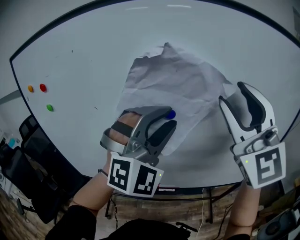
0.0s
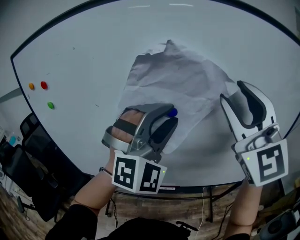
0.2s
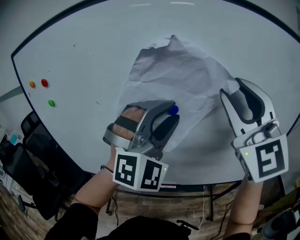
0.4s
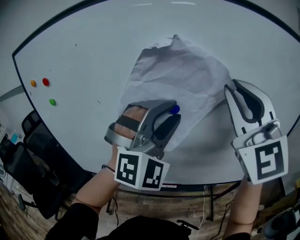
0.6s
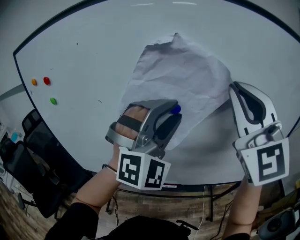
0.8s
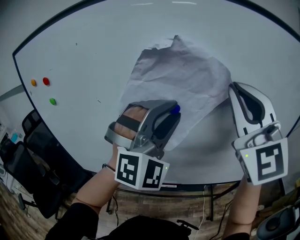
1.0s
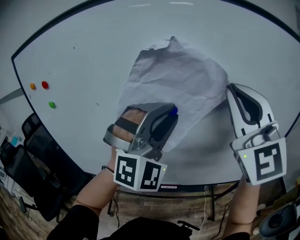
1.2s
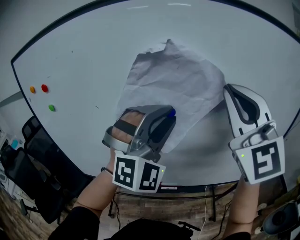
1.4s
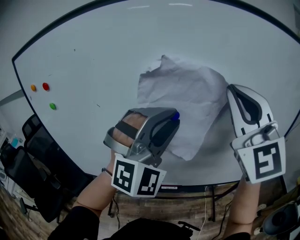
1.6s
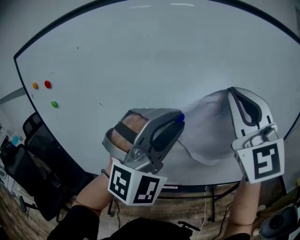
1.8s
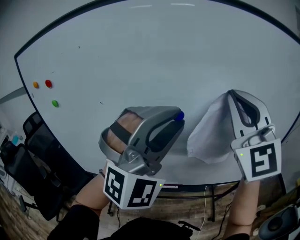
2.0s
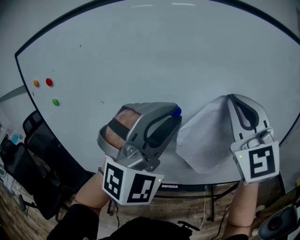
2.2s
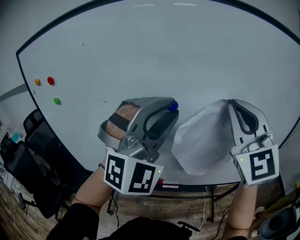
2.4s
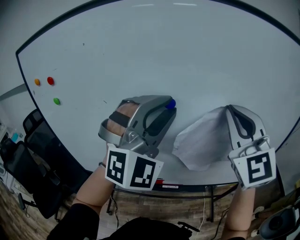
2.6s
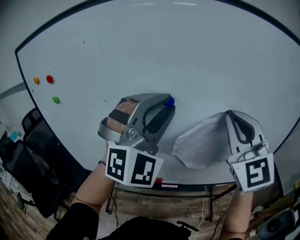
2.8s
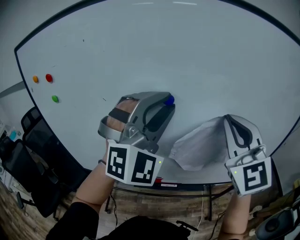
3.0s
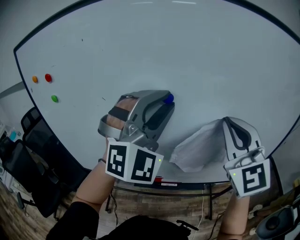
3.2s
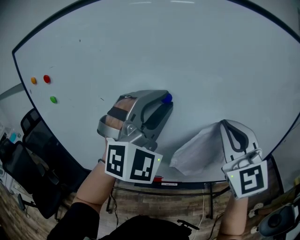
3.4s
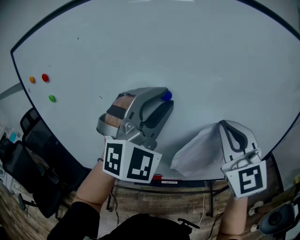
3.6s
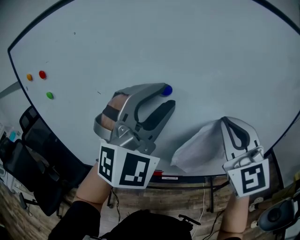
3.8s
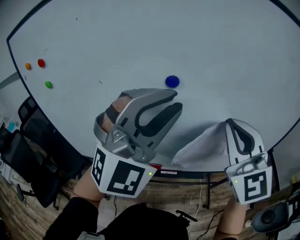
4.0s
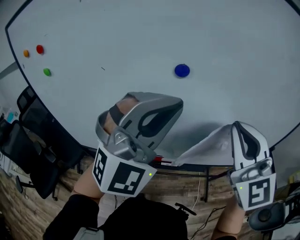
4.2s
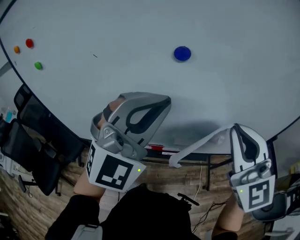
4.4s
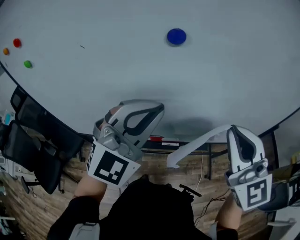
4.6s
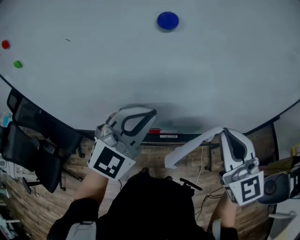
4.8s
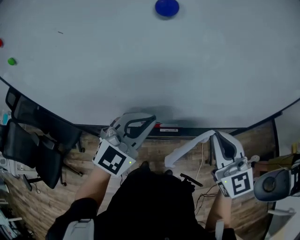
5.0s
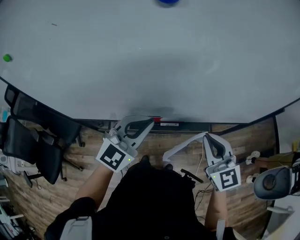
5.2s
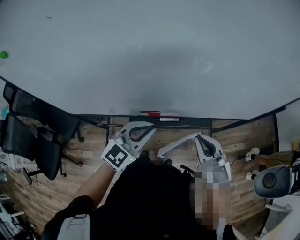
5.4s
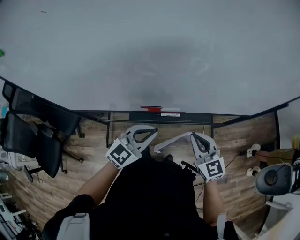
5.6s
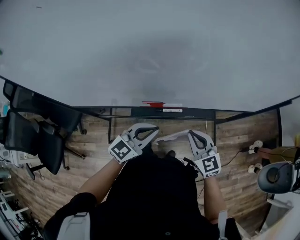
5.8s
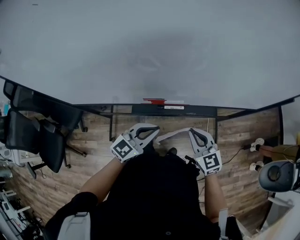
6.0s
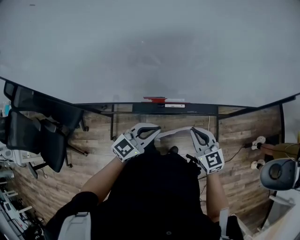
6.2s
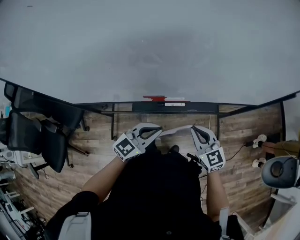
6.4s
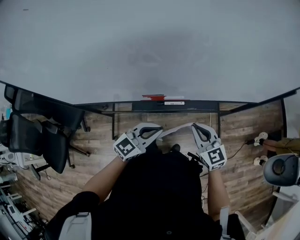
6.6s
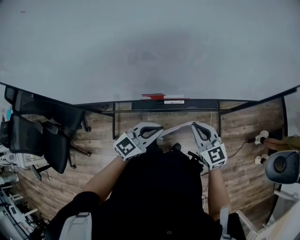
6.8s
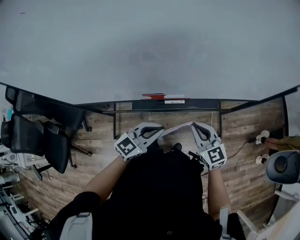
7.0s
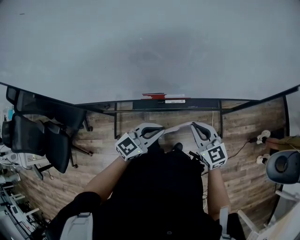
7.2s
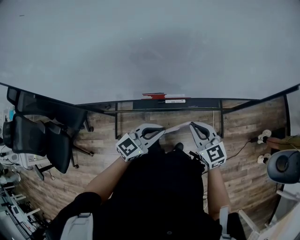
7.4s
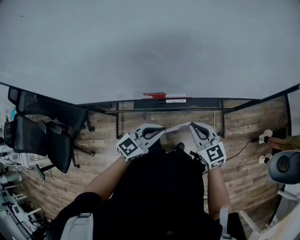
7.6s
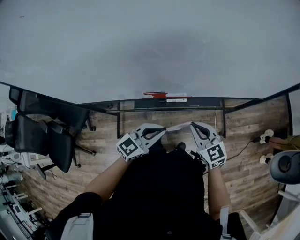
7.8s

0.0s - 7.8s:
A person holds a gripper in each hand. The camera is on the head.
0.0s - 1.6s: The right gripper closes.
1.6s - 3.2s: The right gripper travels downward by some 10 cm.
3.2s - 4.6s: The left gripper moves downward, some 15 cm, swivels approximately 30 degrees, and closes up, while the right gripper is displaced downward and backward by about 10 cm.
4.6s - 6.2s: The grippers both shift downward by about 35 cm. The right gripper turns by some 30 degrees; the left gripper rolls counterclockwise, seen from behind, by some 50 degrees.
6.2s - 7.8s: The grippers move only a little.

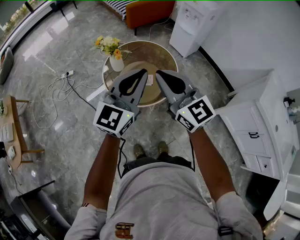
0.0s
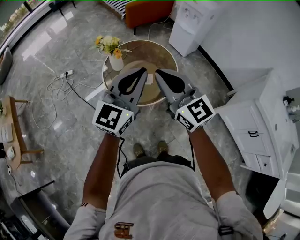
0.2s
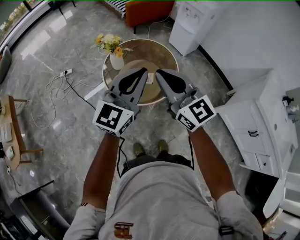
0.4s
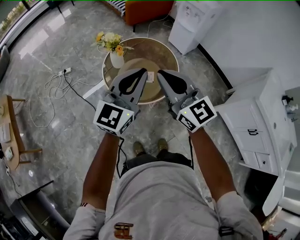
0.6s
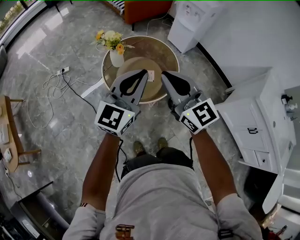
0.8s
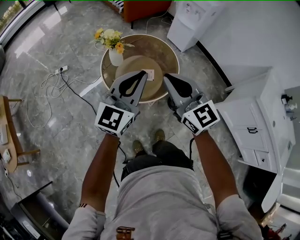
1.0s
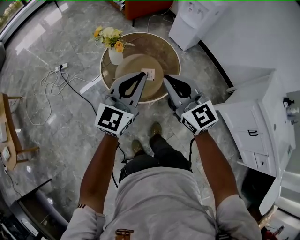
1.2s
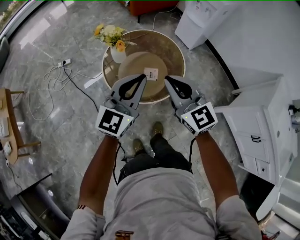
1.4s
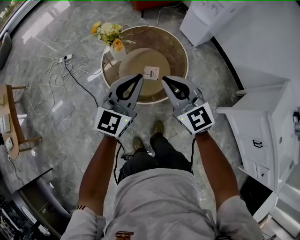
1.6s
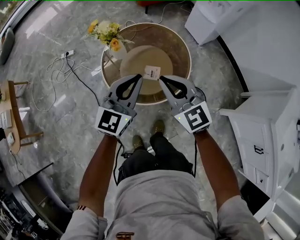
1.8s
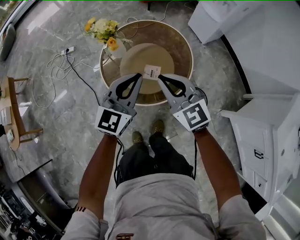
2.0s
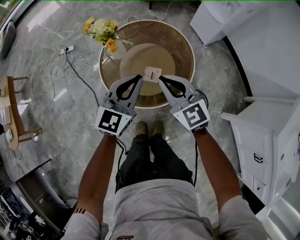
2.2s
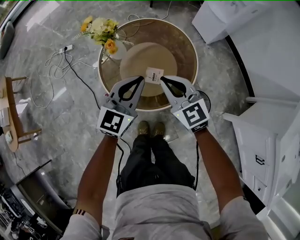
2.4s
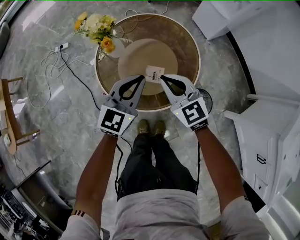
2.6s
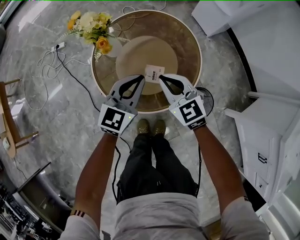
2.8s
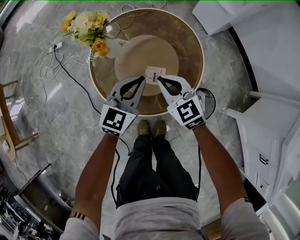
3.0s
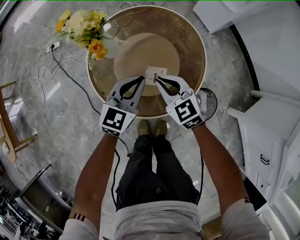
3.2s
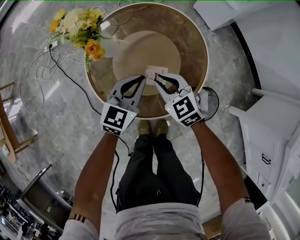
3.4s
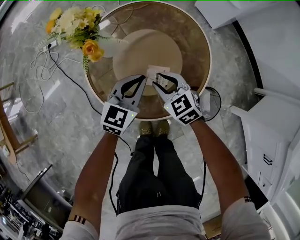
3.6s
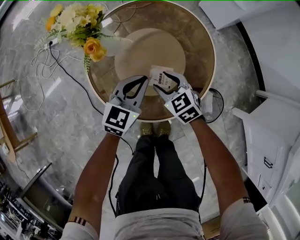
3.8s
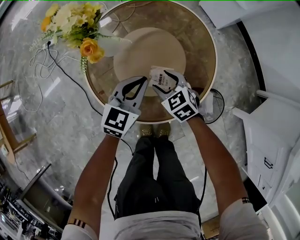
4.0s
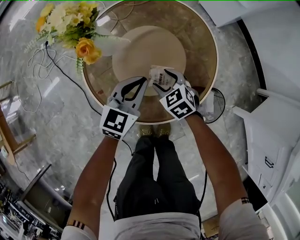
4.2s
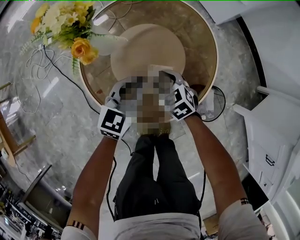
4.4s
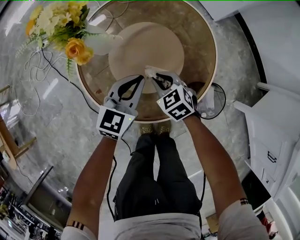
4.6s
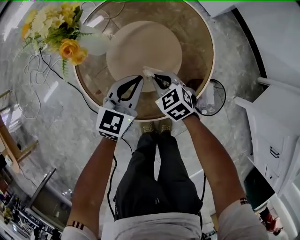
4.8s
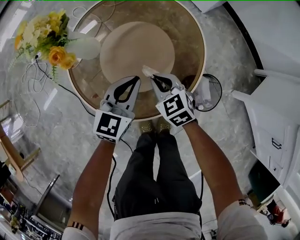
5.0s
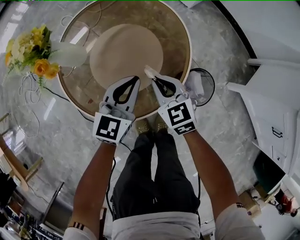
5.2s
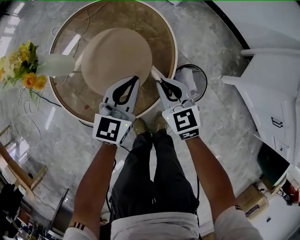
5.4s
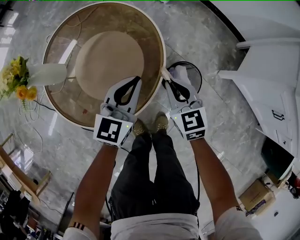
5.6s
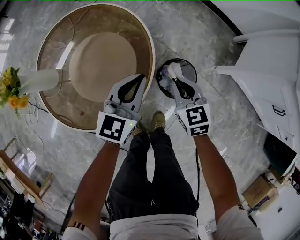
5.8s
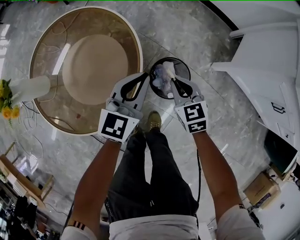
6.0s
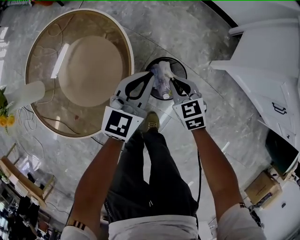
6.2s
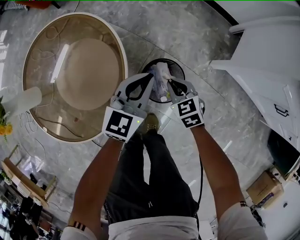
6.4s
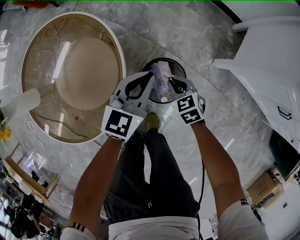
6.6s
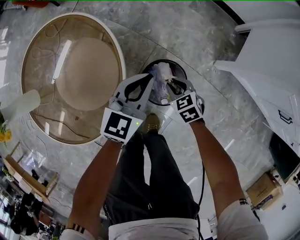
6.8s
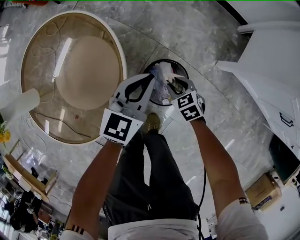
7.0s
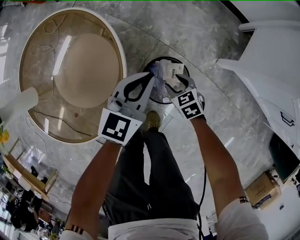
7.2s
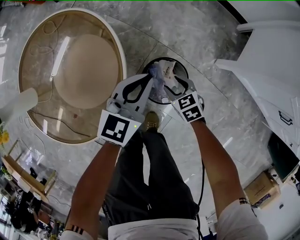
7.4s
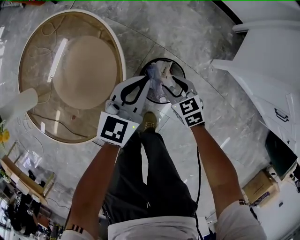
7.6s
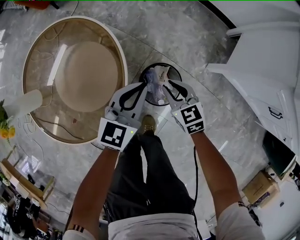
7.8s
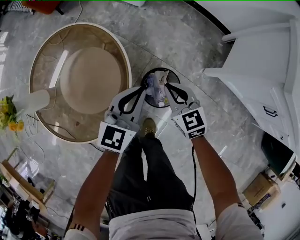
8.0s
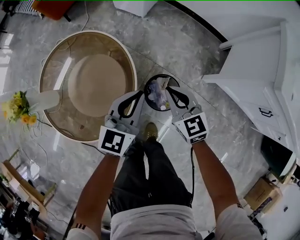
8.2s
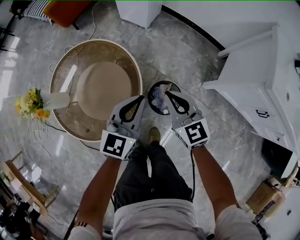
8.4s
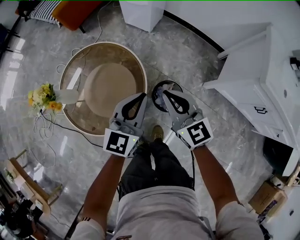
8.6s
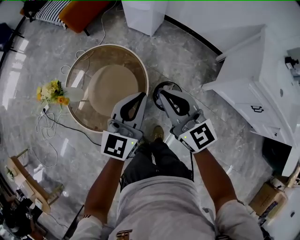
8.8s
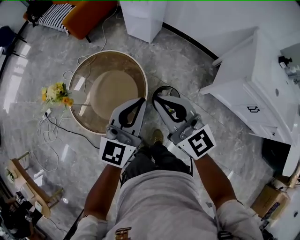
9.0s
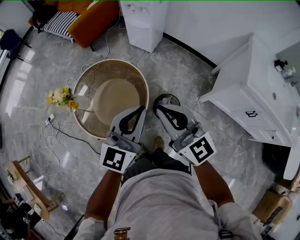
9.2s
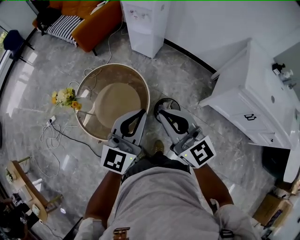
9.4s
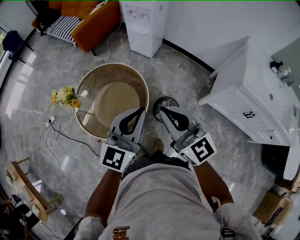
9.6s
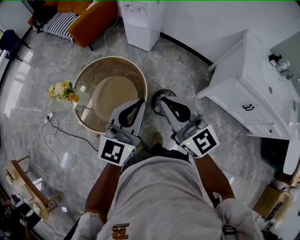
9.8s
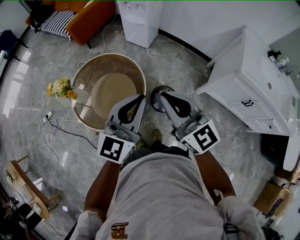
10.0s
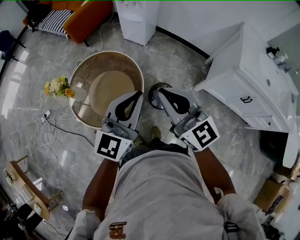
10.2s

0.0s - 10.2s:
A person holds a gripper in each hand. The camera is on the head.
0.0s - 1.4s: The two grippers go about 10 cm downward.
1.4s - 3.0s: The grippers both shift downward and forward by roughly 35 cm. The right gripper rotates approximately 20 degrees.
3.0s - 4.4s: The left gripper travels downward by some 10 cm; the right gripper goes some 20 cm downward, turns by approximately 20 degrees, and opens.
4.4s - 5.8s: The left gripper moves roughly 25 cm; the right gripper shifts by about 35 cm, turns by some 40 degrees, and closes up.
5.8s - 7.2s: The right gripper shifts about 25 cm downward and to the right, rotates about 20 degrees, and opens its fingers; the left gripper shifts some 15 cm to the right, downward and forward.
7.2s - 8.8s: The right gripper is displaced upward by some 60 cm, tilts its fingers roughly 50 degrees upward, and closes. The left gripper is displaced upward by about 40 cm.
8.8s - 10.2s: The two grippers go about 15 cm upward and backward.

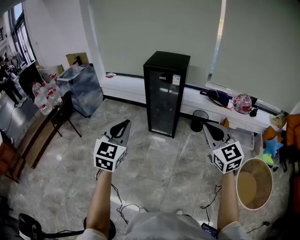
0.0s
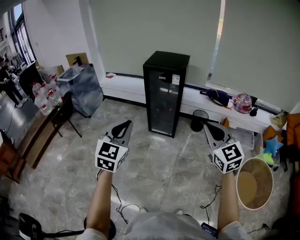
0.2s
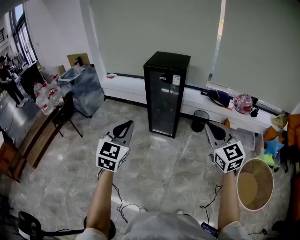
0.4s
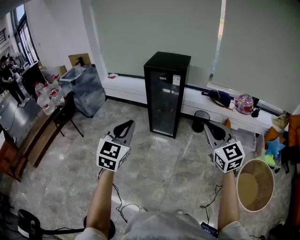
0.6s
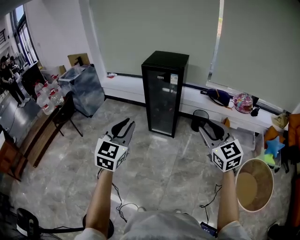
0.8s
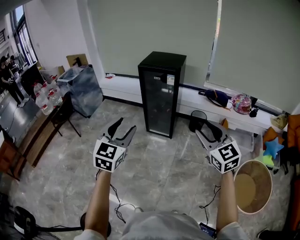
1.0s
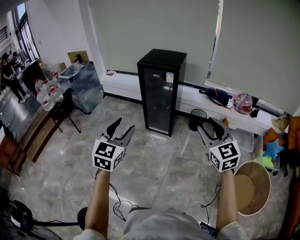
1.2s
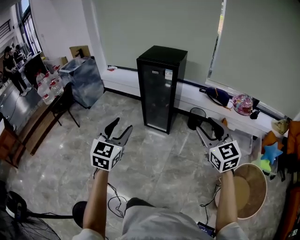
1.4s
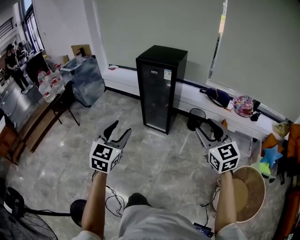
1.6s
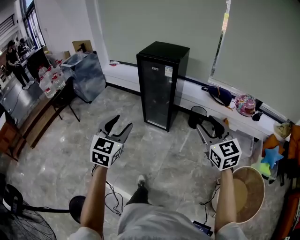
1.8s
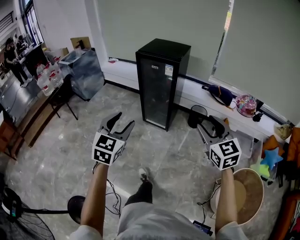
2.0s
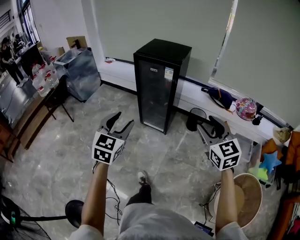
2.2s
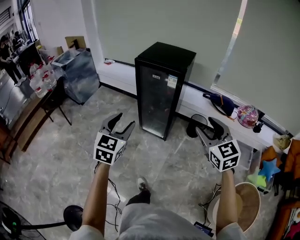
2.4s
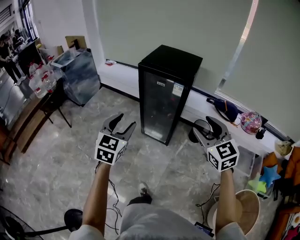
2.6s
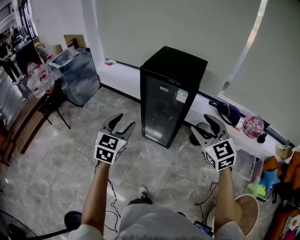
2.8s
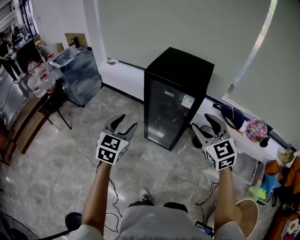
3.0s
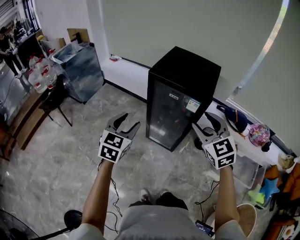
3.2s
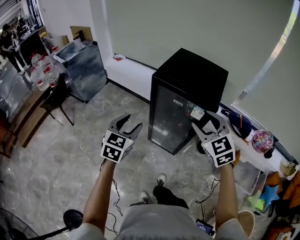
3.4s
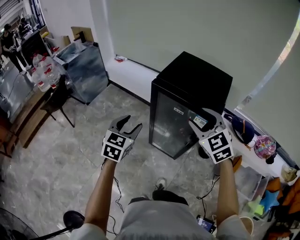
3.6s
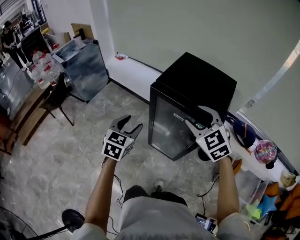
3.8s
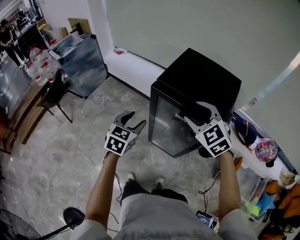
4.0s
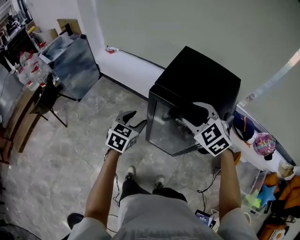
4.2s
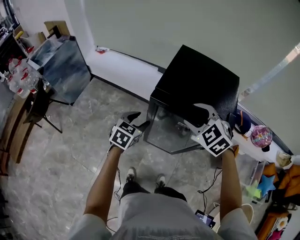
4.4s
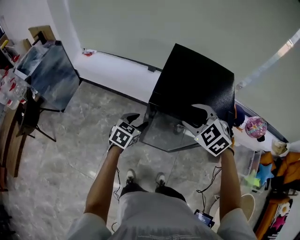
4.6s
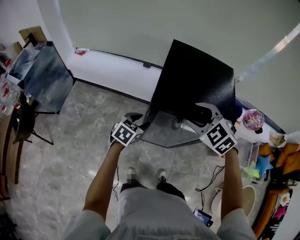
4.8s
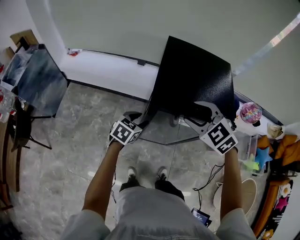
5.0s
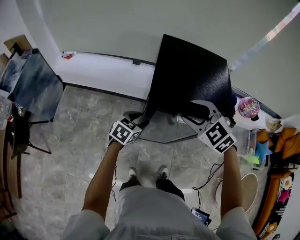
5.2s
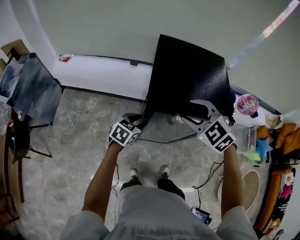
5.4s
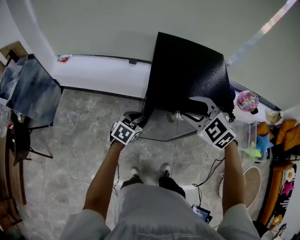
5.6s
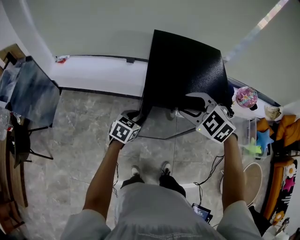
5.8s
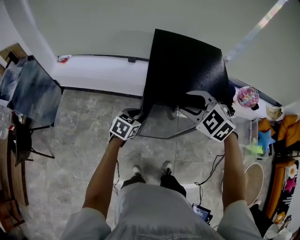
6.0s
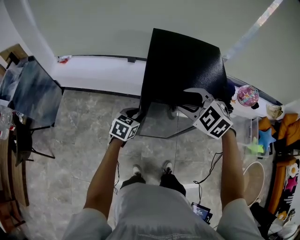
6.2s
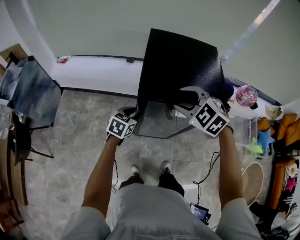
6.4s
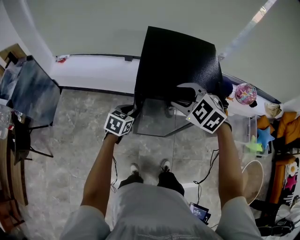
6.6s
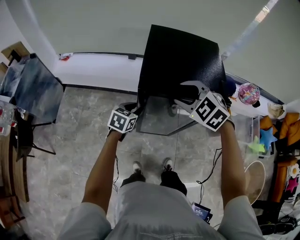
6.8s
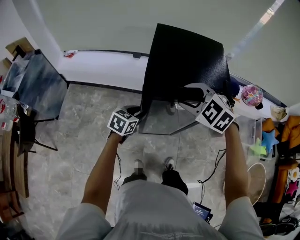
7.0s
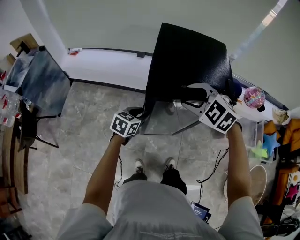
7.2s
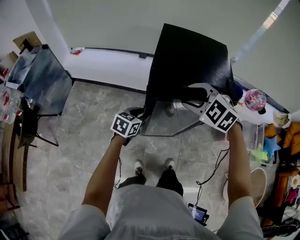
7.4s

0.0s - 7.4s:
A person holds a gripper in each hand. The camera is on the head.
0.0s - 1.4s: Both grippers move to the right, some 10 cm. The right gripper opens up, while the left gripper opens its fingers.
1.4s - 3.0s: The pair of grippers is taken forward, roughly 40 cm.
3.0s - 4.4s: The right gripper moves forward, about 35 cm, and rotates roughly 30 degrees. The left gripper goes about 35 cm forward and downward, and rotates roughly 20 degrees.
4.4s - 6.0s: The left gripper heads downward and forward, covering roughly 10 cm, rotates some 20 degrees, and closes.
6.0s - 7.4s: The left gripper moves backward, approximately 5 cm.
